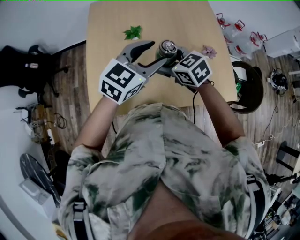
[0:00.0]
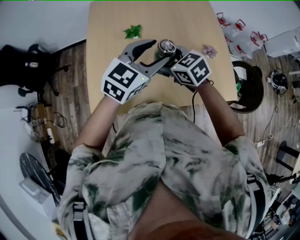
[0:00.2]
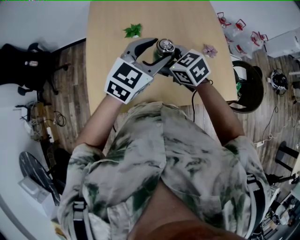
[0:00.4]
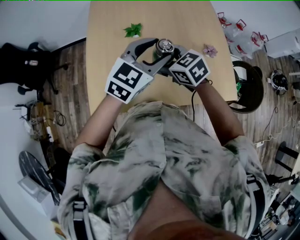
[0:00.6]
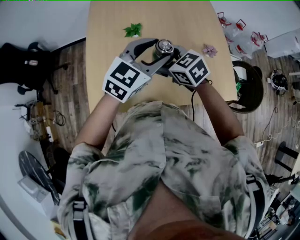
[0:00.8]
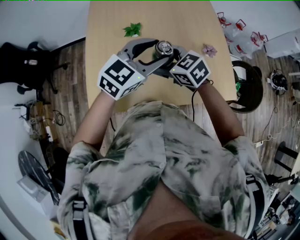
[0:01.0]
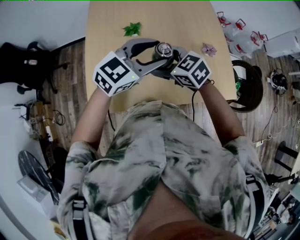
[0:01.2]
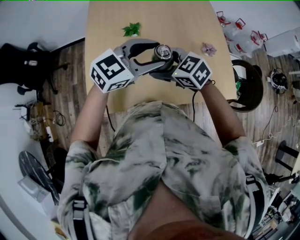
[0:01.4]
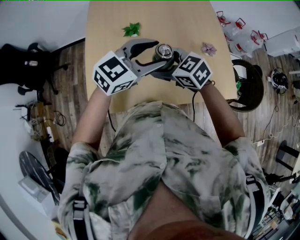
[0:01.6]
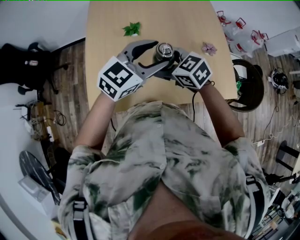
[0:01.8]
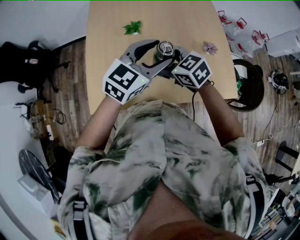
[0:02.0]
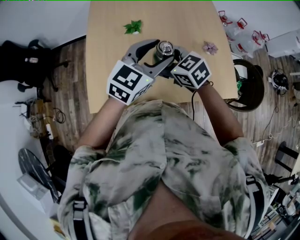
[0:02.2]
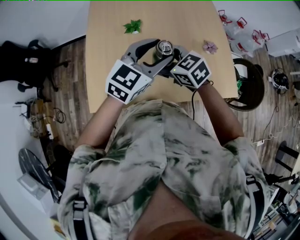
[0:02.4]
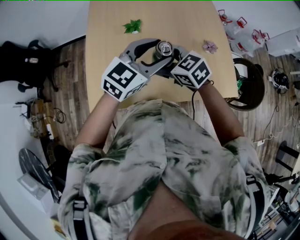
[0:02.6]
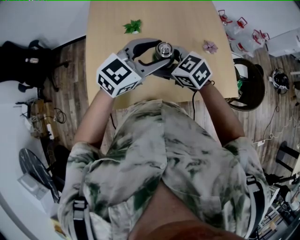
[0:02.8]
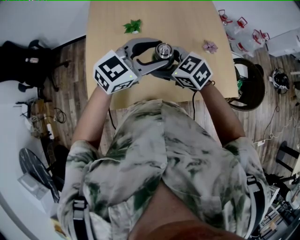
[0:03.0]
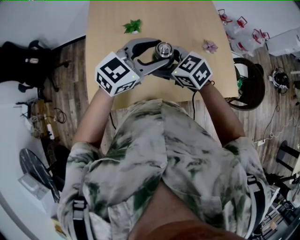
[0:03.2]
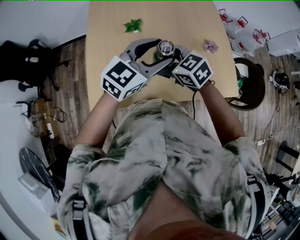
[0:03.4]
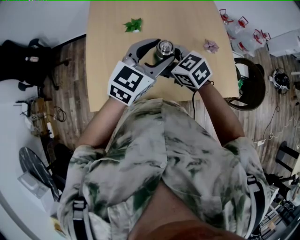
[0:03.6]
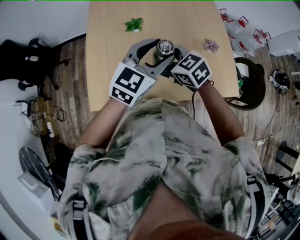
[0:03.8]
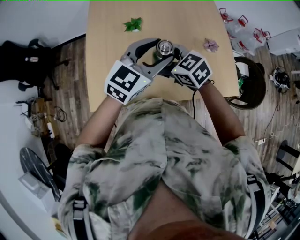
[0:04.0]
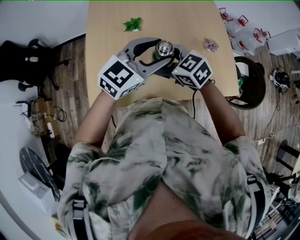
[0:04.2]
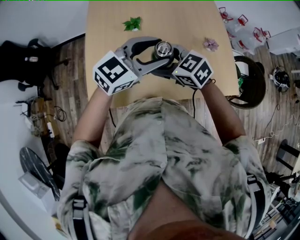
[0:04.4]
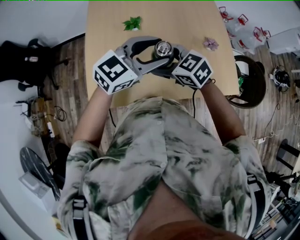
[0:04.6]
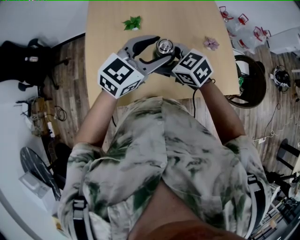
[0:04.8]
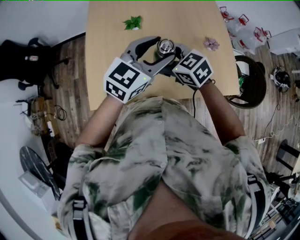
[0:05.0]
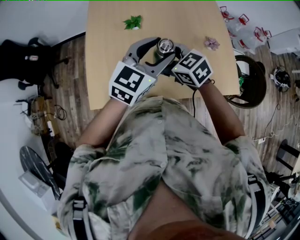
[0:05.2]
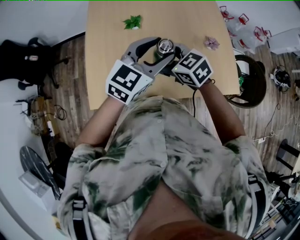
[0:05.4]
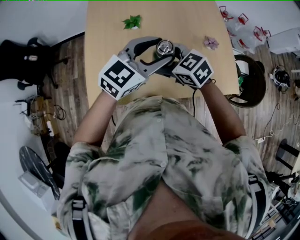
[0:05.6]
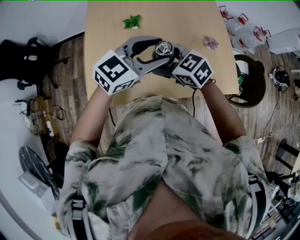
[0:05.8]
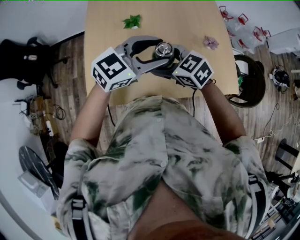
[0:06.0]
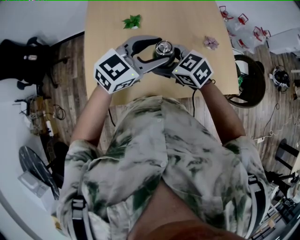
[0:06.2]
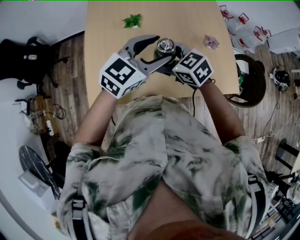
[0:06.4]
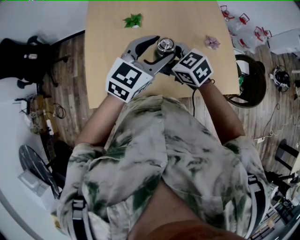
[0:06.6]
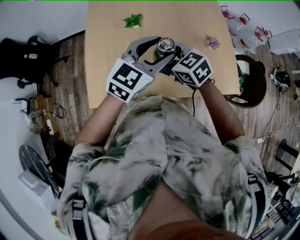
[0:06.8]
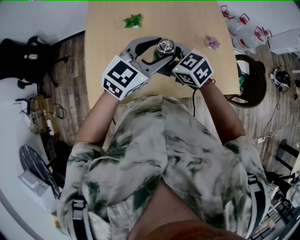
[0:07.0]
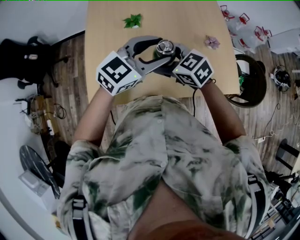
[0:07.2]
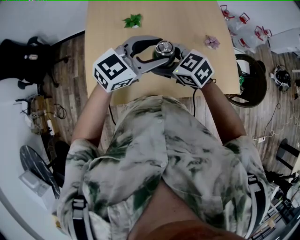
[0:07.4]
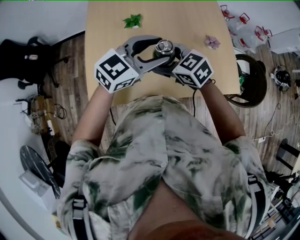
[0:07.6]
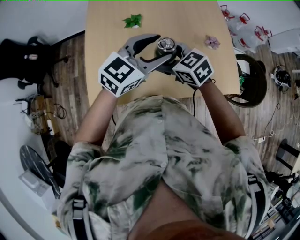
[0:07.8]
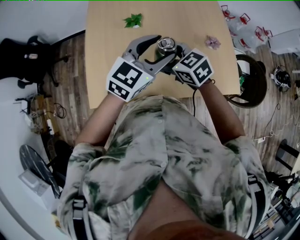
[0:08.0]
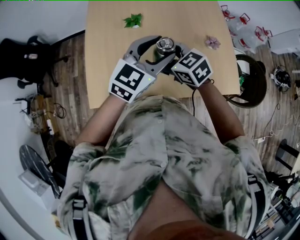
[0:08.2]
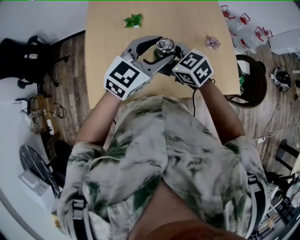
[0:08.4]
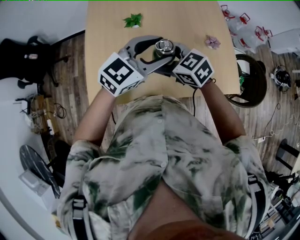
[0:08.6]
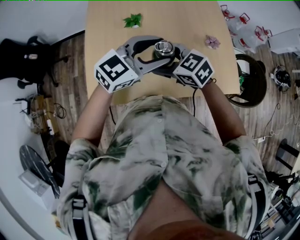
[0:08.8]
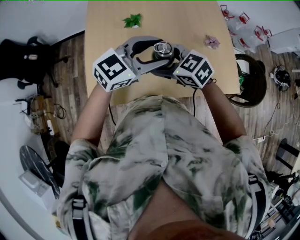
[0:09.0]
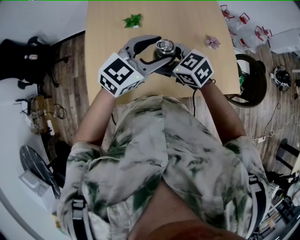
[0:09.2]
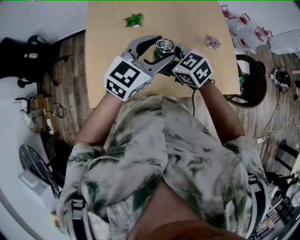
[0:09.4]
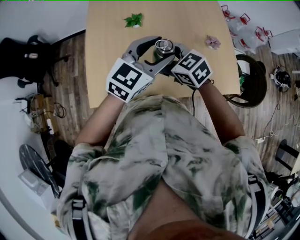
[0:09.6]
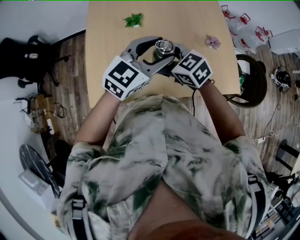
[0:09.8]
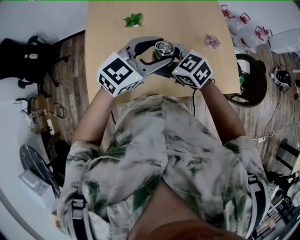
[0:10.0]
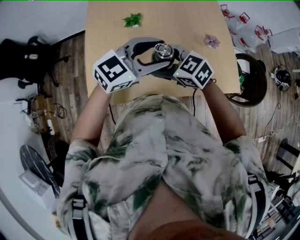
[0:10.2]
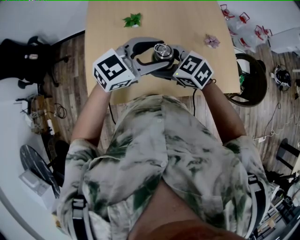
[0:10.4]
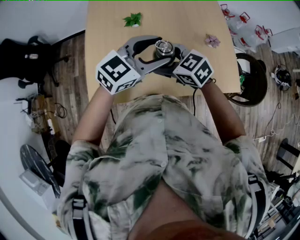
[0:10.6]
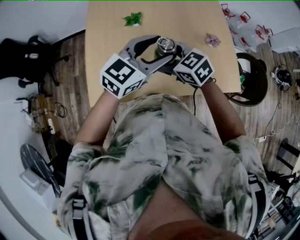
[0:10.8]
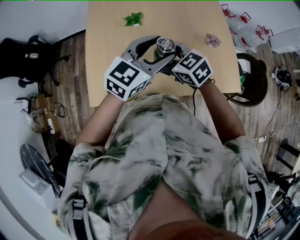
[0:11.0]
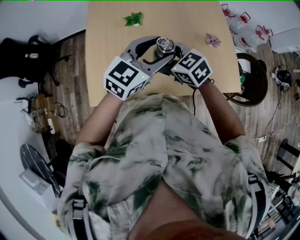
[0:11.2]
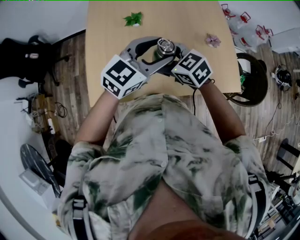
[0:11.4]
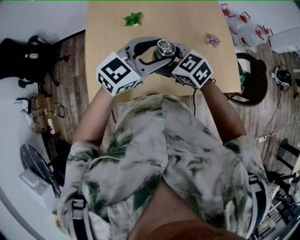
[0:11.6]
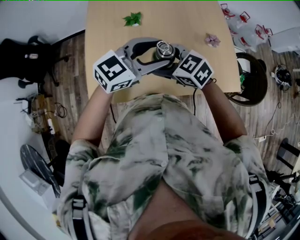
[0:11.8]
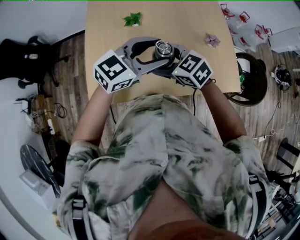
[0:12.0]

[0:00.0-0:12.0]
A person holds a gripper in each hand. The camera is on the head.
0:00.0 to 0:03.0: The grippers move only a little.
0:04.4 to 0:06.0: The grippers stay close to where they were, moving slightly.
0:07.6 to 0:10.4: The grippers stay close to where they were, moving slightly.

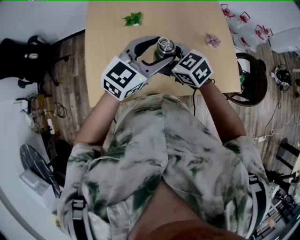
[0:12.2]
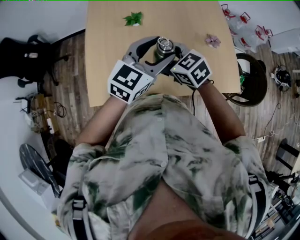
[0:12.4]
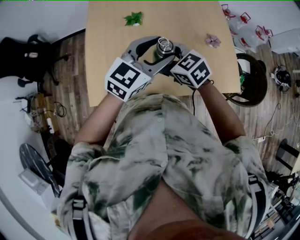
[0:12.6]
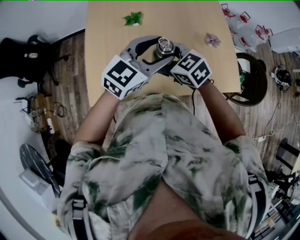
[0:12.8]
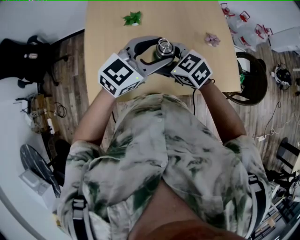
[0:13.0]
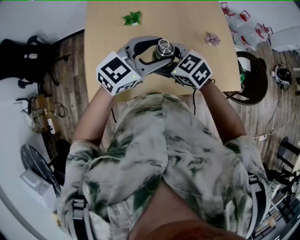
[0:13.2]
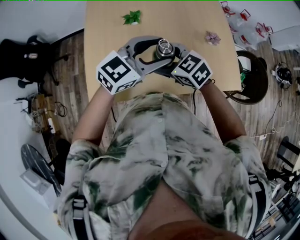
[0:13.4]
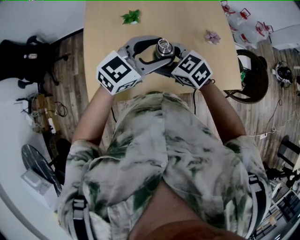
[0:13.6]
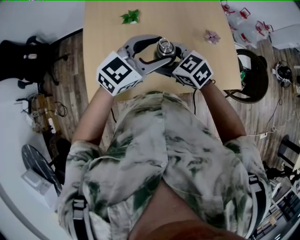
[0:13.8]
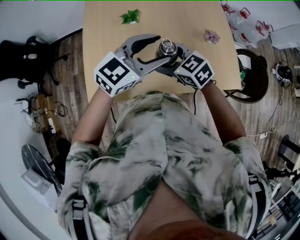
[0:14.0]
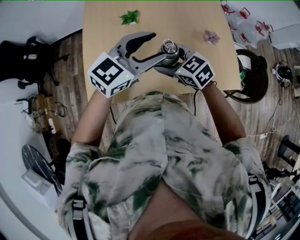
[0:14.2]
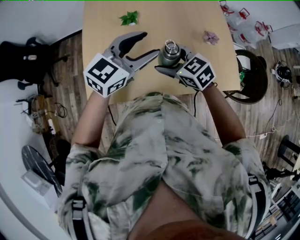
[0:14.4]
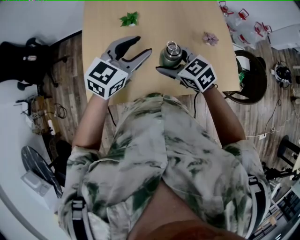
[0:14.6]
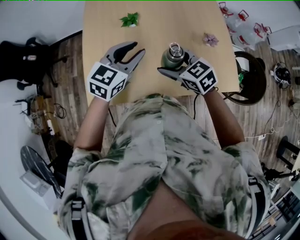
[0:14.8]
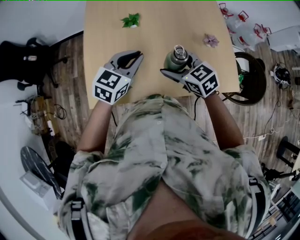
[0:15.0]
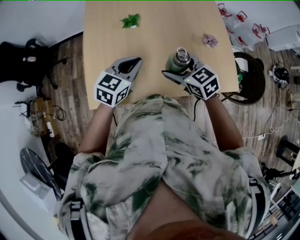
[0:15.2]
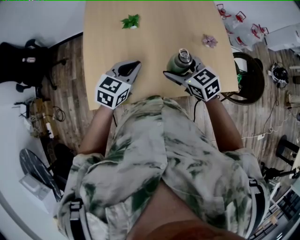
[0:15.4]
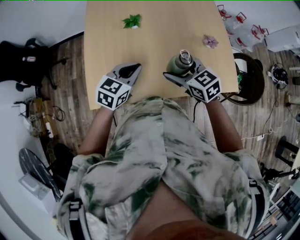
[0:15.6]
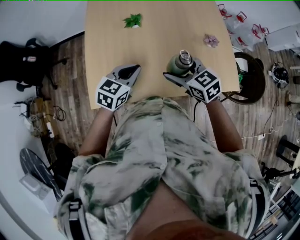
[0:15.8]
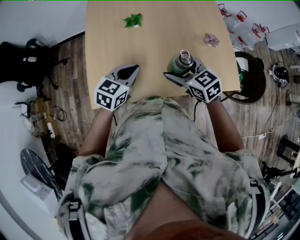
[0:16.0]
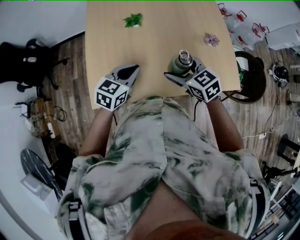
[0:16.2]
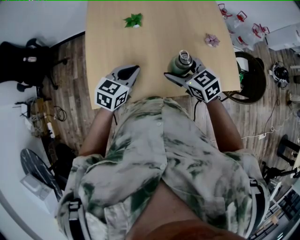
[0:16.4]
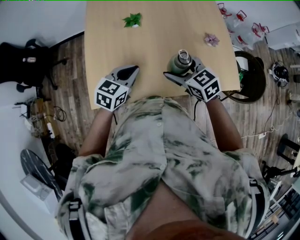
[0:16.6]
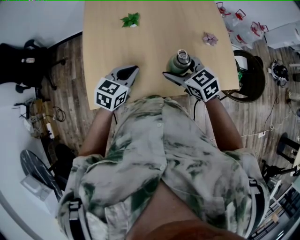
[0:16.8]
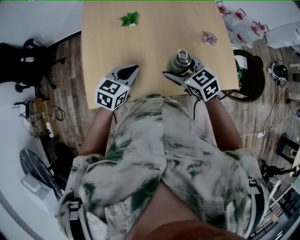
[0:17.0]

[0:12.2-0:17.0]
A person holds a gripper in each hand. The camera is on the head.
0:12.2 to 0:13.8: The grippers stay close to where they were, moving slightly.
0:13.8 to 0:15.4: The right gripper ends up some 5 cm from where it was. The left gripper heads downward and to the left, covering about 15 cm, turns by some 30 degrees, and closes up.
0:15.4 to 0:17.0: The grippers move only a little.

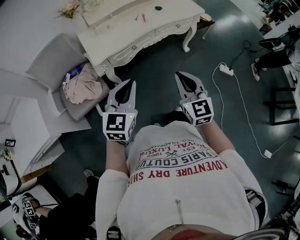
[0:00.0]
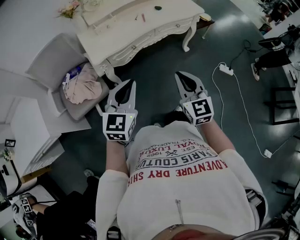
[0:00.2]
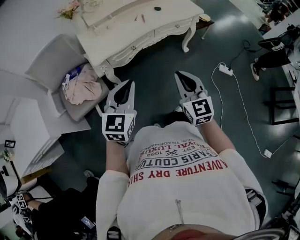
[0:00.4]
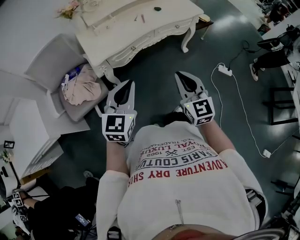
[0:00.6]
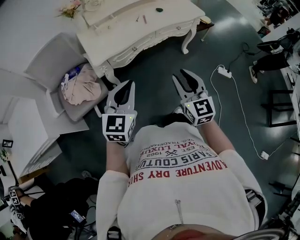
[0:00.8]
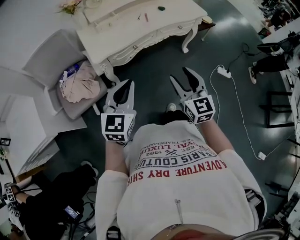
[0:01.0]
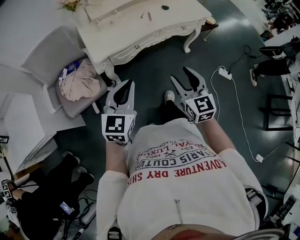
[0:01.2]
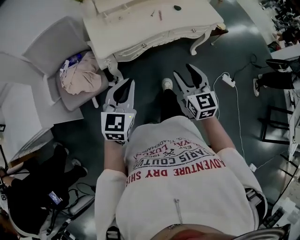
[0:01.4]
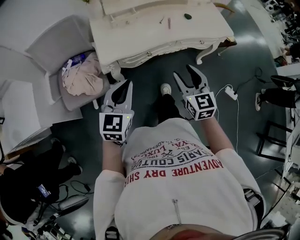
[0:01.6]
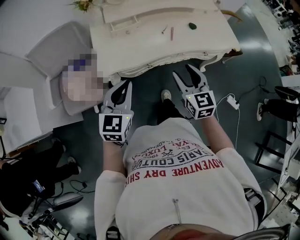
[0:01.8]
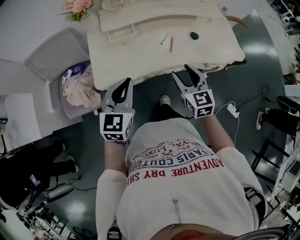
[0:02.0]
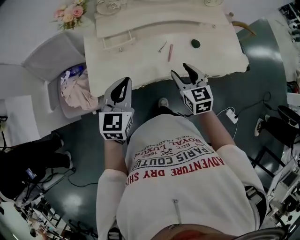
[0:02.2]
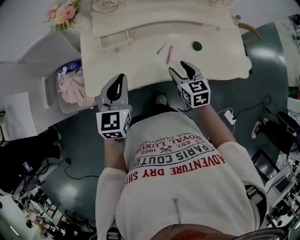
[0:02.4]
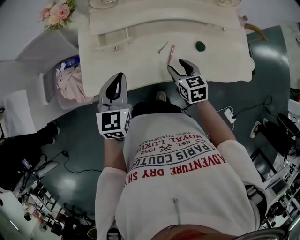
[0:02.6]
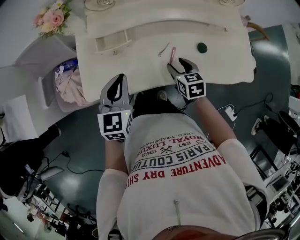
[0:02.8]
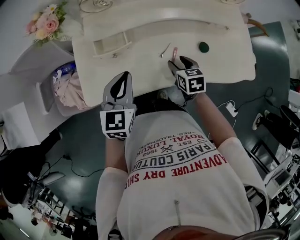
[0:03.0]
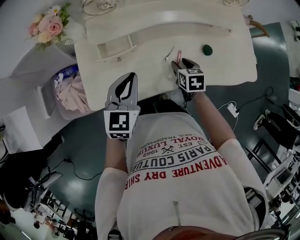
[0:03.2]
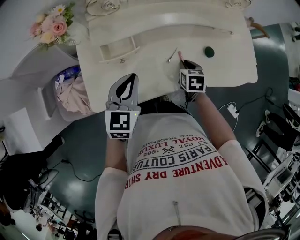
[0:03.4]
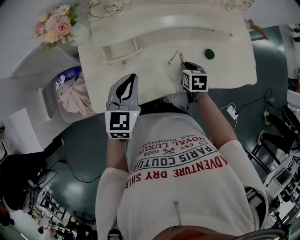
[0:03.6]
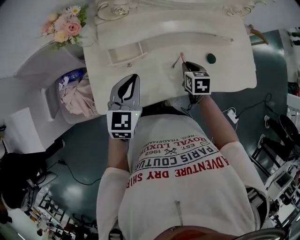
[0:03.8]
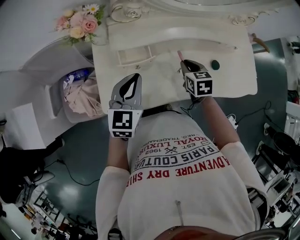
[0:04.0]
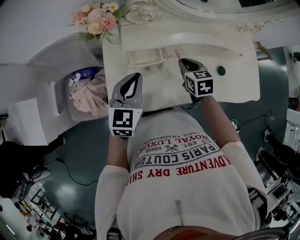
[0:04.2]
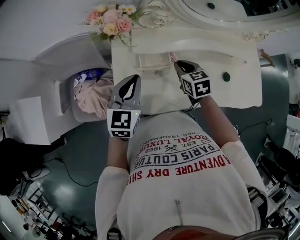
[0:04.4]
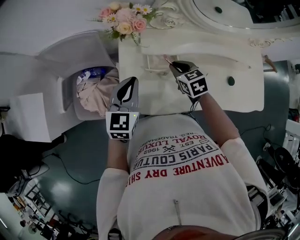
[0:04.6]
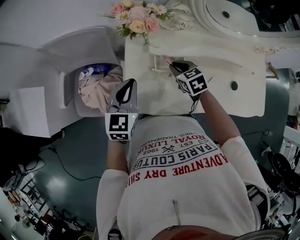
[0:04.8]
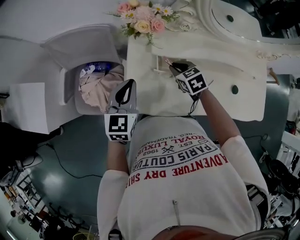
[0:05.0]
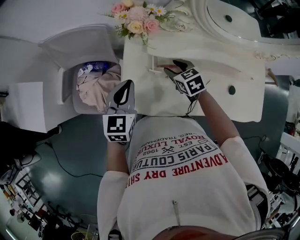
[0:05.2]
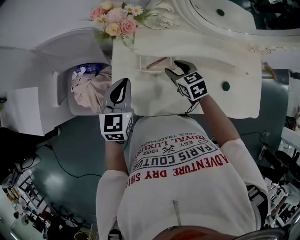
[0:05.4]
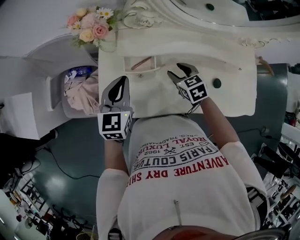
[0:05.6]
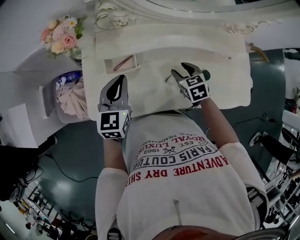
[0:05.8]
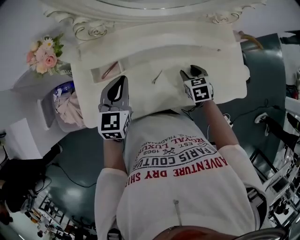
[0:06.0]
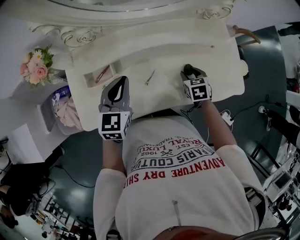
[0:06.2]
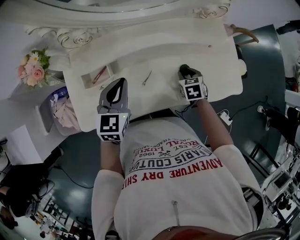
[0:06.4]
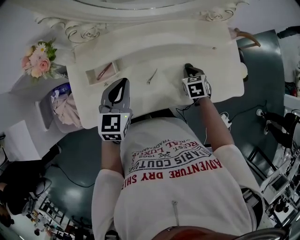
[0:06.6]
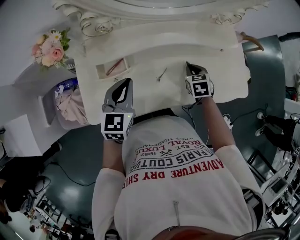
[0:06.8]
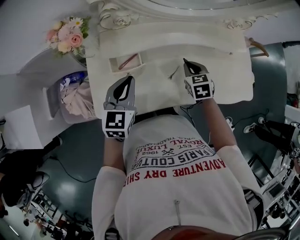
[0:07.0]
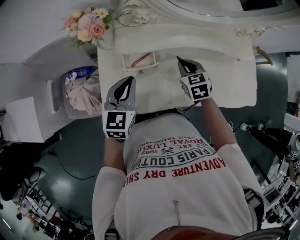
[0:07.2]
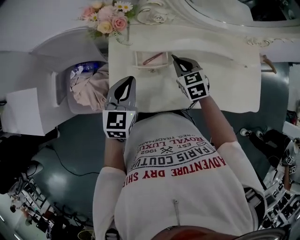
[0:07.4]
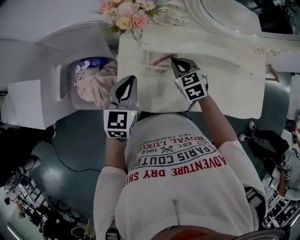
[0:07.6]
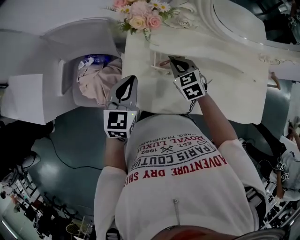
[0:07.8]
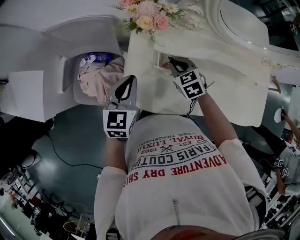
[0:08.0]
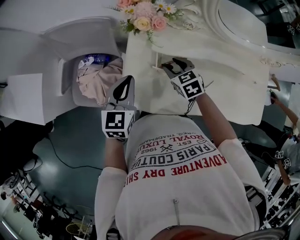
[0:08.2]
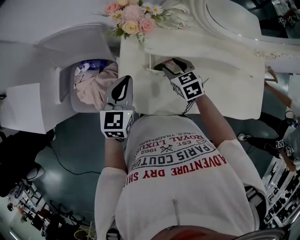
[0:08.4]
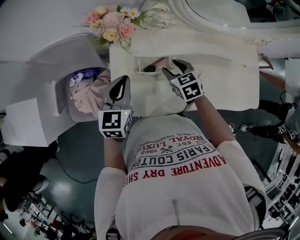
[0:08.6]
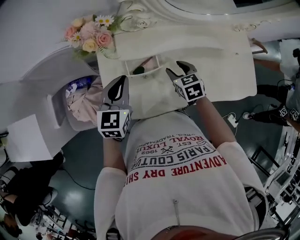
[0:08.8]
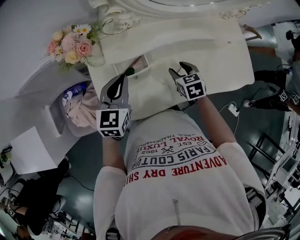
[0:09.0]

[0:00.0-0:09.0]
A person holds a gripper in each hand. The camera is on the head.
0:00.0 to 0:01.6: The right gripper heads forward, covering about 15 cm, and opens up. The left gripper heads forward and to the left, covering roughly 15 cm.
0:01.6 to 0:03.0: The right gripper travels forward and downward by approximately 40 cm, and angles its fingers downward, by about 30 degrees, while the left gripper moves forward, approximately 35 cm.
0:03.0 to 0:04.4: The right gripper heads to the left, upward and forward, covering some 20 cm, and closes up. Meanwhile the left gripper shifts approximately 15 cm to the left.
0:04.4 to 0:06.0: The left gripper heads to the right, covering some 15 cm; the right gripper heads to the right, covering about 25 cm, and opens up.
0:06.0 to 0:07.6: The right gripper moves to the left, roughly 30 cm, turns by some 30 degrees, and closes up, while the left gripper travels to the left by some 20 cm.
0:07.6 to 0:09.0: The left gripper shifts by some 10 cm; the right gripper ends up about 15 cm from where it was, changes its angle by about 30 degrees, and opens up.
